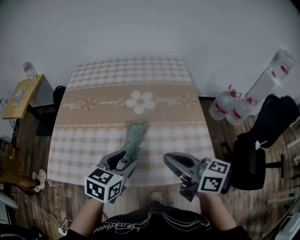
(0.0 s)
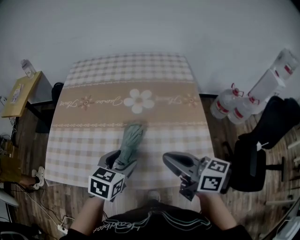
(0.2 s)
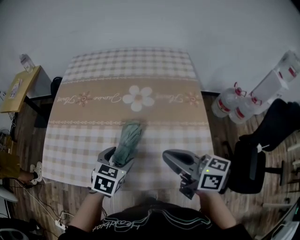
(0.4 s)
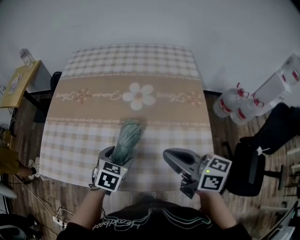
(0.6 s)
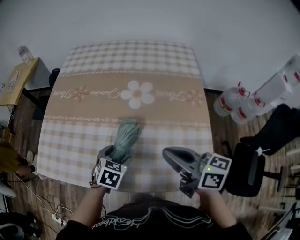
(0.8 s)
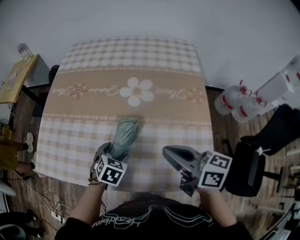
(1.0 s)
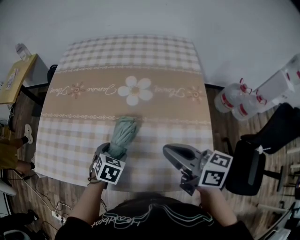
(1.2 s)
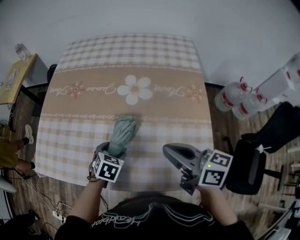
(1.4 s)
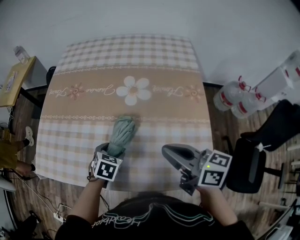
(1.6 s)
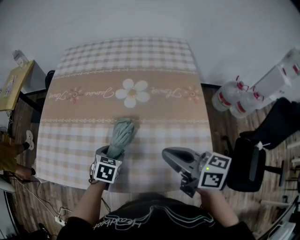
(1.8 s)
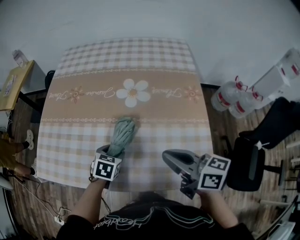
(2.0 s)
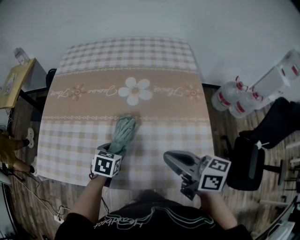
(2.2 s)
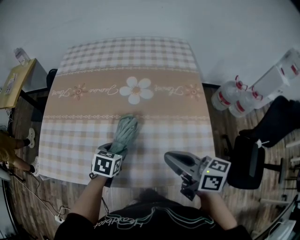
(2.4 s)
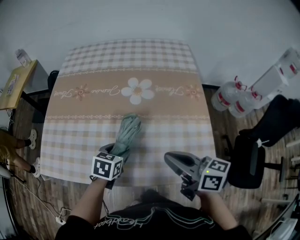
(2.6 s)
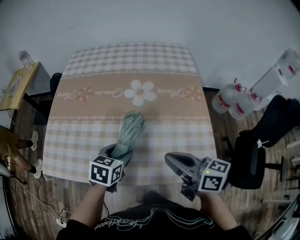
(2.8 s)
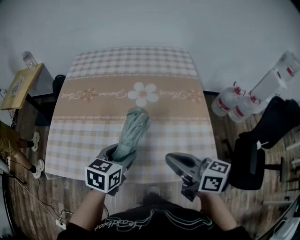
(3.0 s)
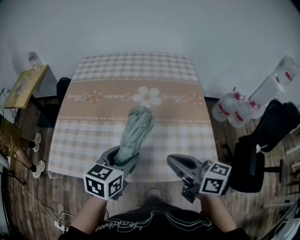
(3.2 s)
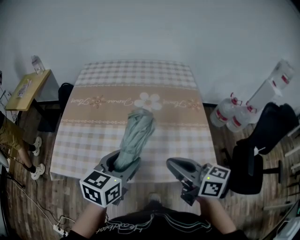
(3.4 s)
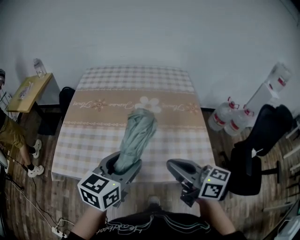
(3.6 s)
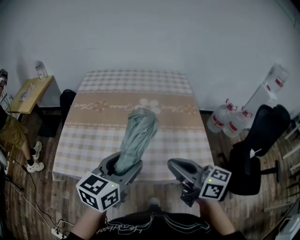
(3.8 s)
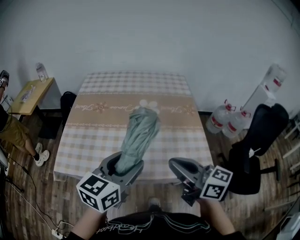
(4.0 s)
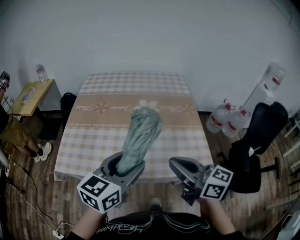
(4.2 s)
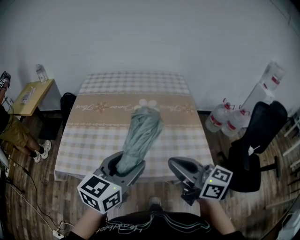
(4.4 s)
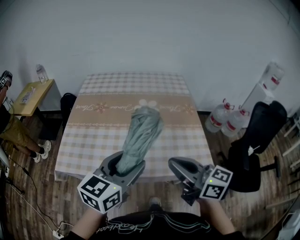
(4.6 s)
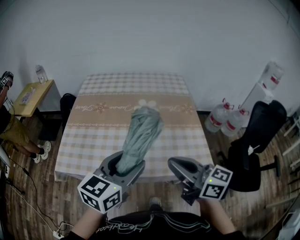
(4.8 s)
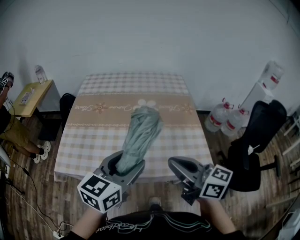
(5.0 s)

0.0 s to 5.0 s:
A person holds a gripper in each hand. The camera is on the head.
0.0 to 1.6 s: The left gripper is displaced downward and forward by approximately 20 cm, changes its angle by roughly 30 degrees, and opens, while the right gripper goes some 10 cm forward, to the right and downward.
1.6 to 3.4 s: The left gripper moves upward and backward, some 30 cm, and tips its fingers upward by about 40 degrees, while the right gripper goes roughly 15 cm backward, to the left and upward.
3.4 to 5.0 s: The left gripper moves upward and backward, roughly 10 cm. Meanwhile the right gripper moves backward and upward, some 10 cm.

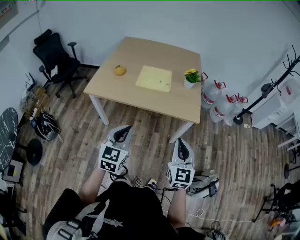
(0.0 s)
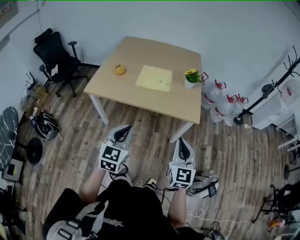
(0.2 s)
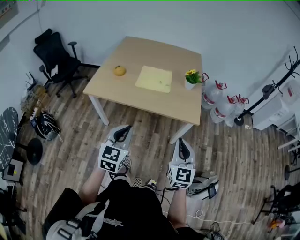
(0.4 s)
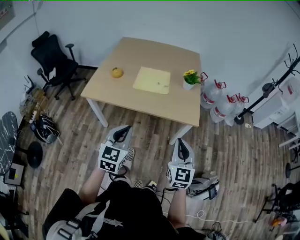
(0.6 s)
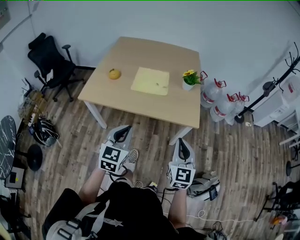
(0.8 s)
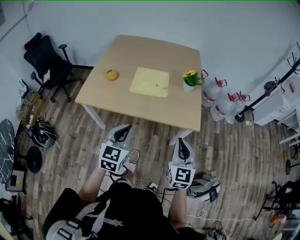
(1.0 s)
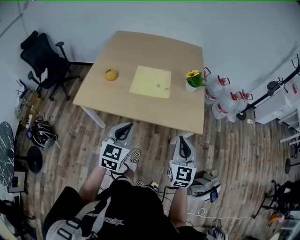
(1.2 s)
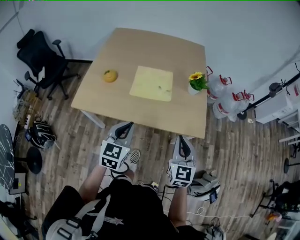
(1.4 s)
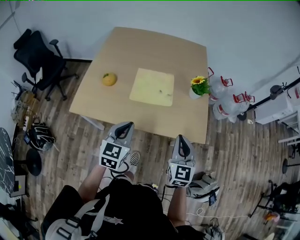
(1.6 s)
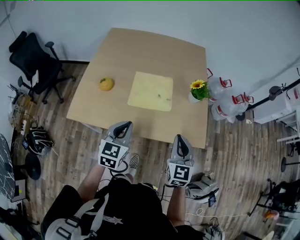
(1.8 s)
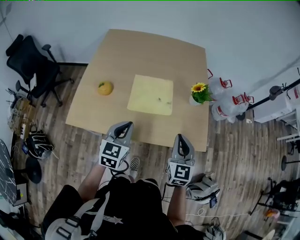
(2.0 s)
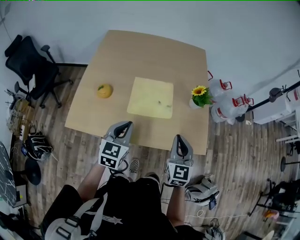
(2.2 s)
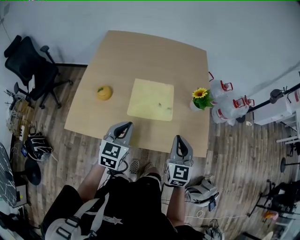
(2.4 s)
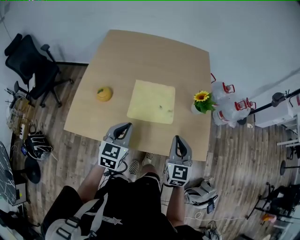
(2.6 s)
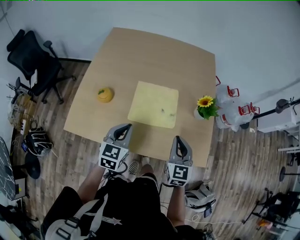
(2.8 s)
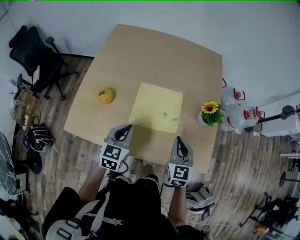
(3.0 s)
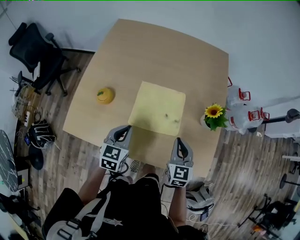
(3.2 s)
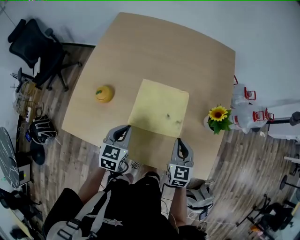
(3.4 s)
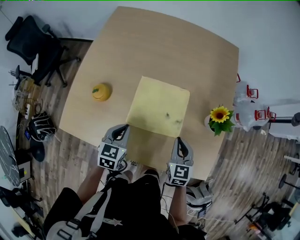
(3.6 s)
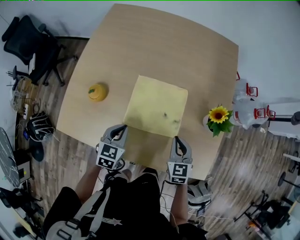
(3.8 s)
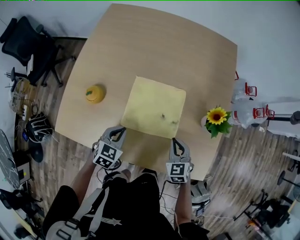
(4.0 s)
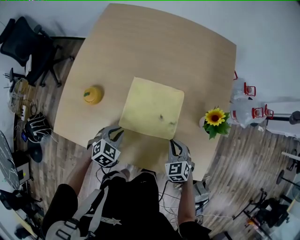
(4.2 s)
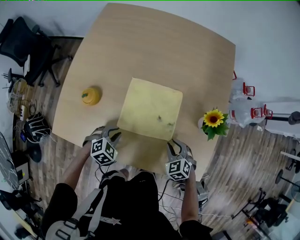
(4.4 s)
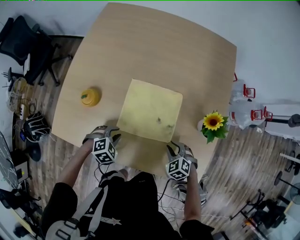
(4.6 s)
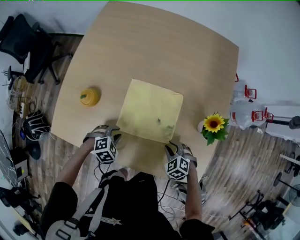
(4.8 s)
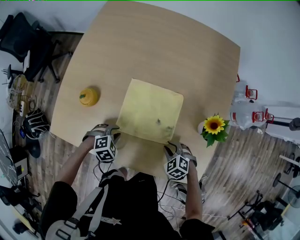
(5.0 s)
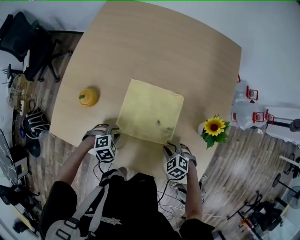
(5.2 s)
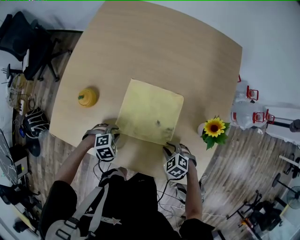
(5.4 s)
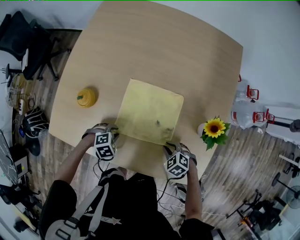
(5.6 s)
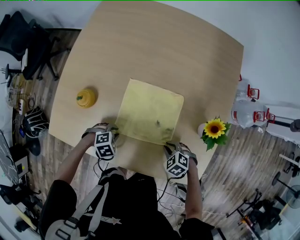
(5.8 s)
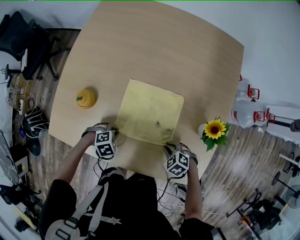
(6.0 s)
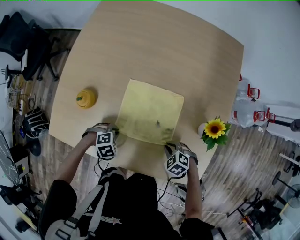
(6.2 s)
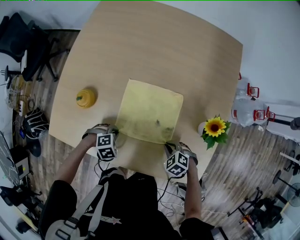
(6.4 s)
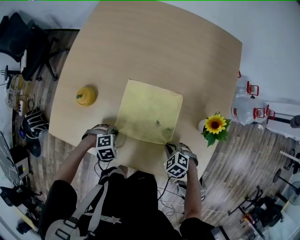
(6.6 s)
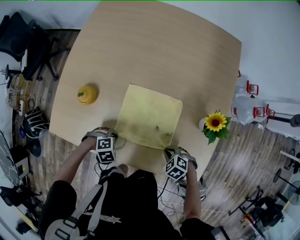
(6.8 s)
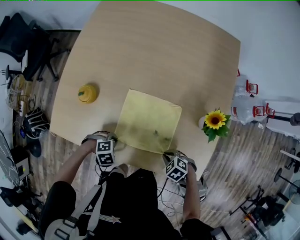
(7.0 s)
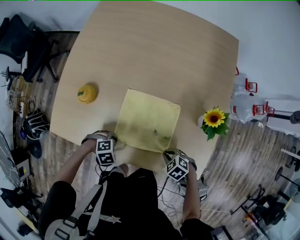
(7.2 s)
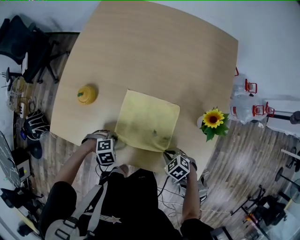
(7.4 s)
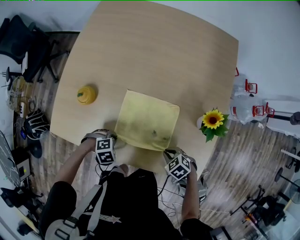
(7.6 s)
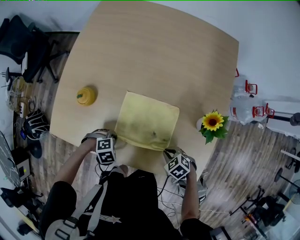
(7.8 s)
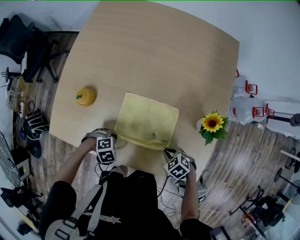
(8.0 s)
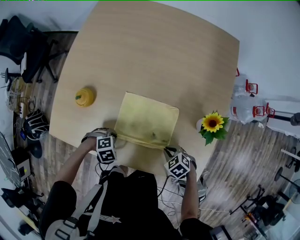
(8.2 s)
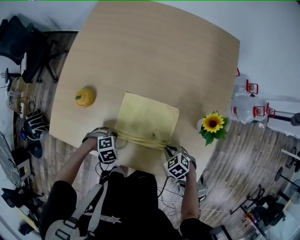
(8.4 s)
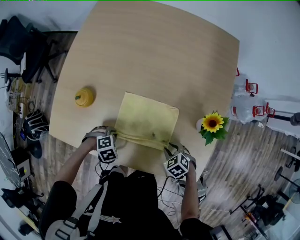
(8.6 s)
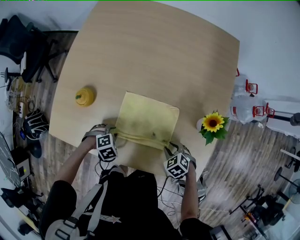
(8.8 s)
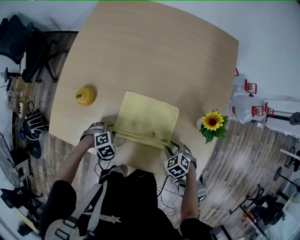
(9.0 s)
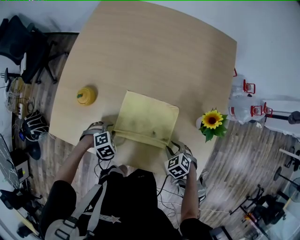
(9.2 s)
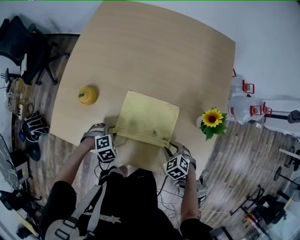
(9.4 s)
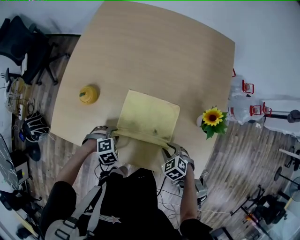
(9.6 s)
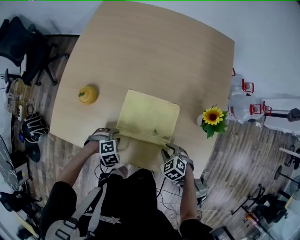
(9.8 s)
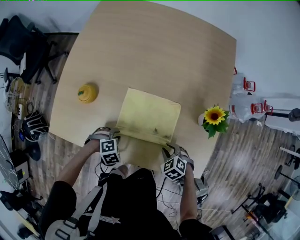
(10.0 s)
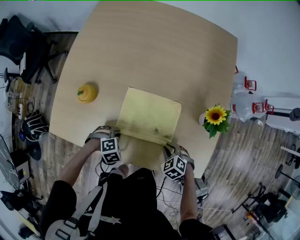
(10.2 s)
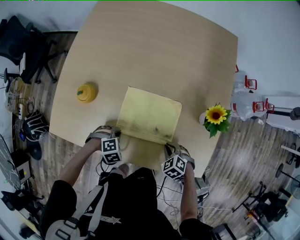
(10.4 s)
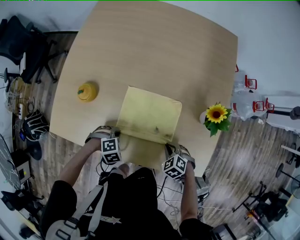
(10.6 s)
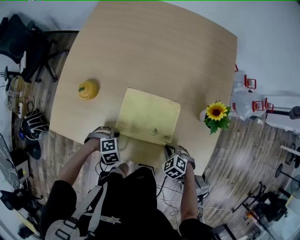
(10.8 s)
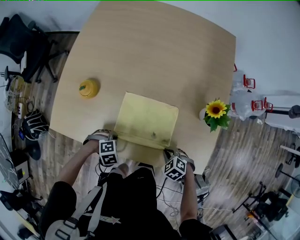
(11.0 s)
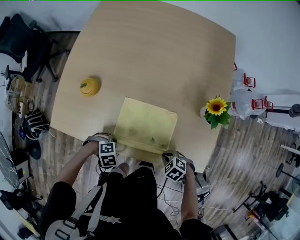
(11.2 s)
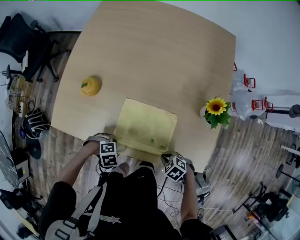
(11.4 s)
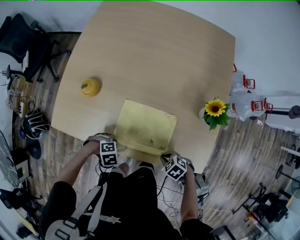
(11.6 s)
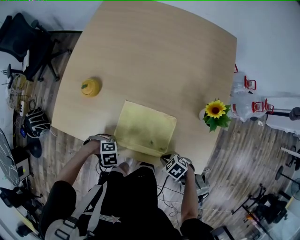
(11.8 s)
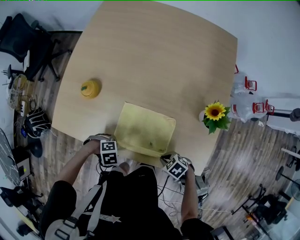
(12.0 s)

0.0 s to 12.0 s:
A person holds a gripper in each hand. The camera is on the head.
0.0 to 1.6 s: The right gripper moves about 25 cm.
1.6 to 3.0 s: The right gripper changes place by approximately 20 cm.
3.0 to 4.4 s: The right gripper heads downward, covering roughly 20 cm, angles its fingers downward, by roughly 30 degrees, and opens its fingers.
4.4 to 6.0 s: The right gripper shifts roughly 5 cm downward, and rotates some 30 degrees.
6.0 to 7.6 s: The right gripper changes place by about 5 cm.
7.6 to 9.0 s: The right gripper changes place by approximately 5 cm, and opens.
9.0 to 10.4 s: The right gripper closes up.
10.4 to 12.0 s: The right gripper shifts by approximately 10 cm, and swivels roughly 30 degrees.

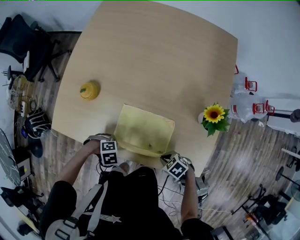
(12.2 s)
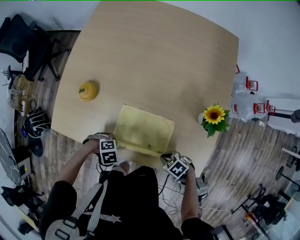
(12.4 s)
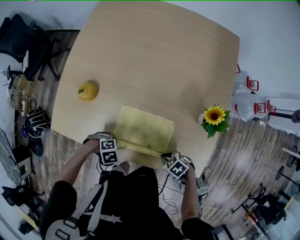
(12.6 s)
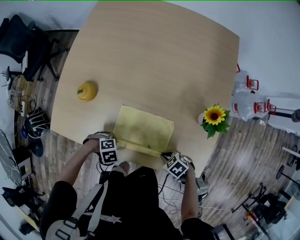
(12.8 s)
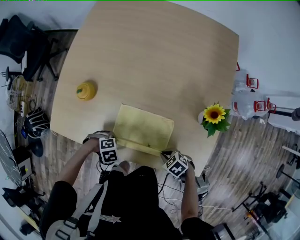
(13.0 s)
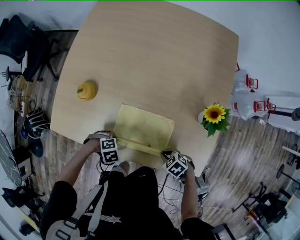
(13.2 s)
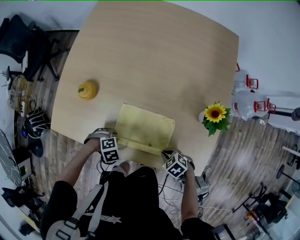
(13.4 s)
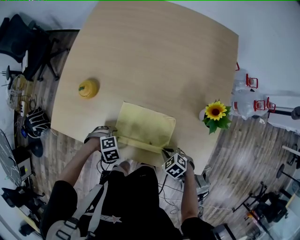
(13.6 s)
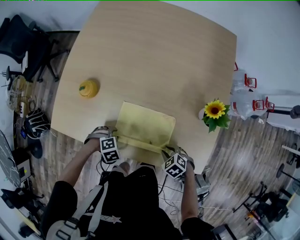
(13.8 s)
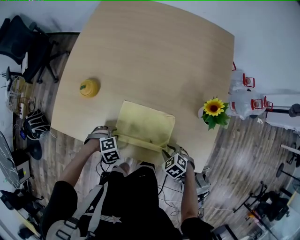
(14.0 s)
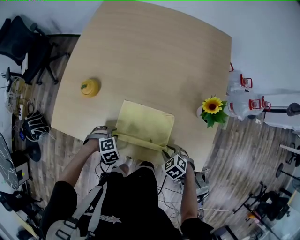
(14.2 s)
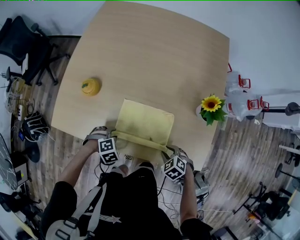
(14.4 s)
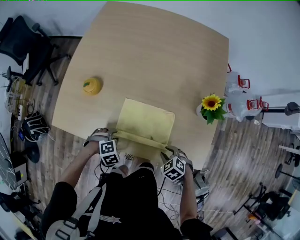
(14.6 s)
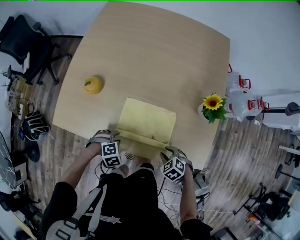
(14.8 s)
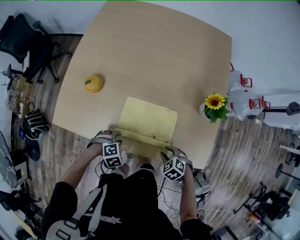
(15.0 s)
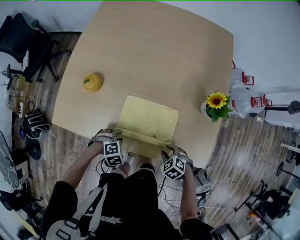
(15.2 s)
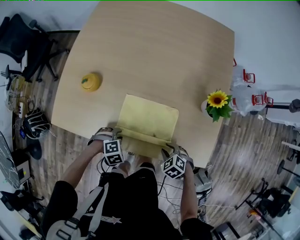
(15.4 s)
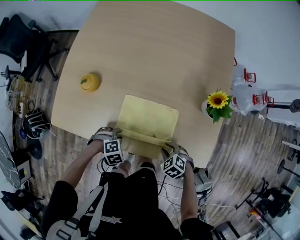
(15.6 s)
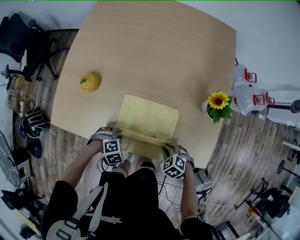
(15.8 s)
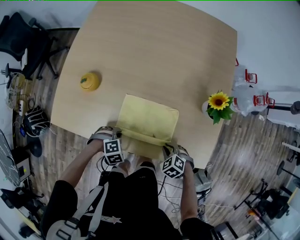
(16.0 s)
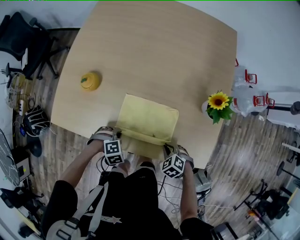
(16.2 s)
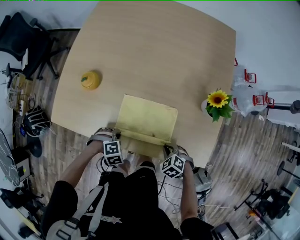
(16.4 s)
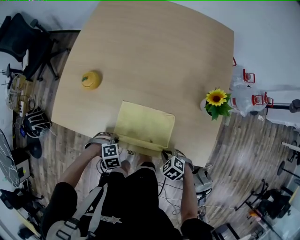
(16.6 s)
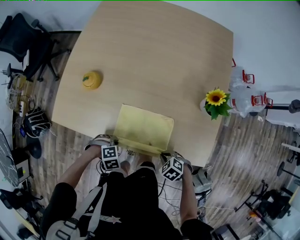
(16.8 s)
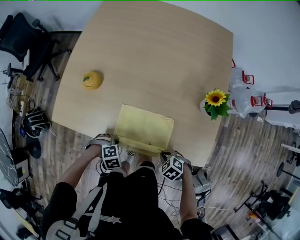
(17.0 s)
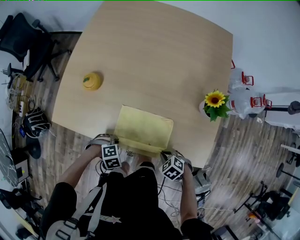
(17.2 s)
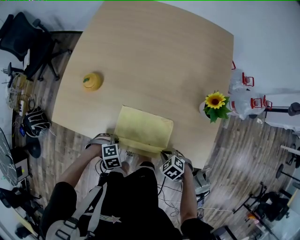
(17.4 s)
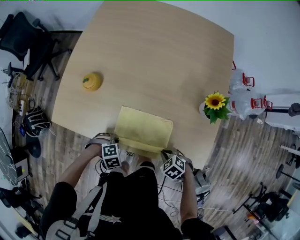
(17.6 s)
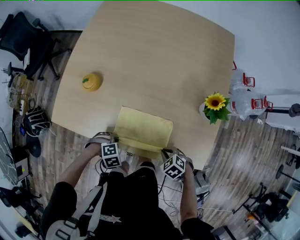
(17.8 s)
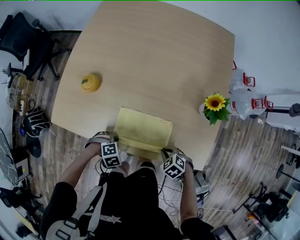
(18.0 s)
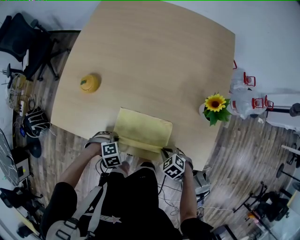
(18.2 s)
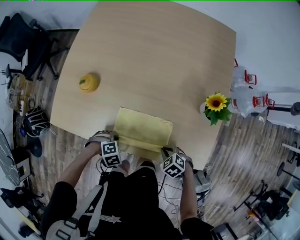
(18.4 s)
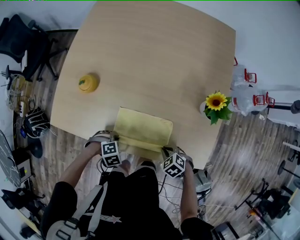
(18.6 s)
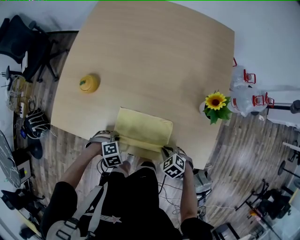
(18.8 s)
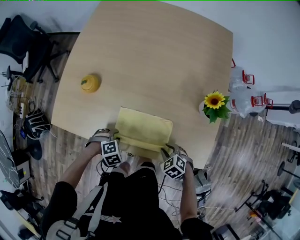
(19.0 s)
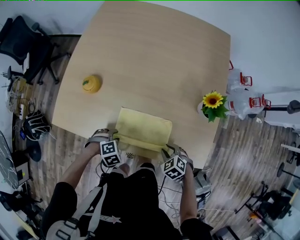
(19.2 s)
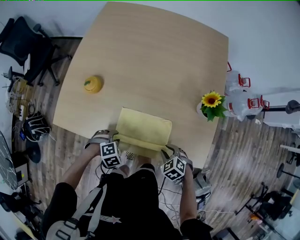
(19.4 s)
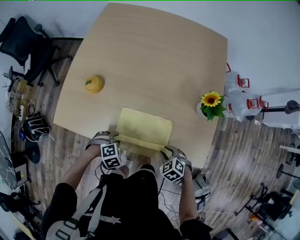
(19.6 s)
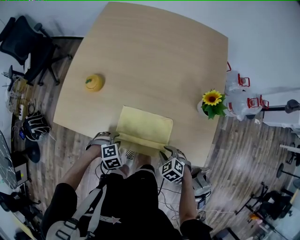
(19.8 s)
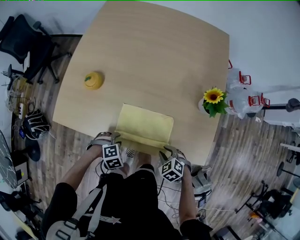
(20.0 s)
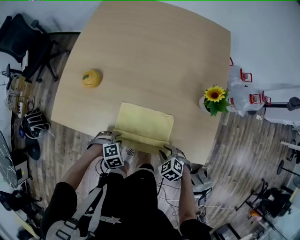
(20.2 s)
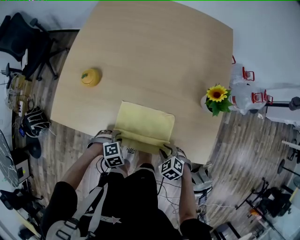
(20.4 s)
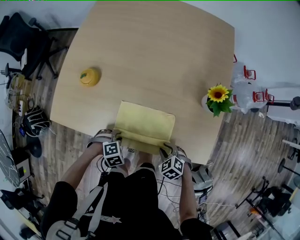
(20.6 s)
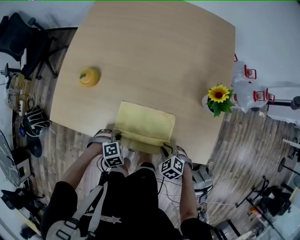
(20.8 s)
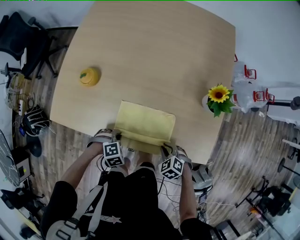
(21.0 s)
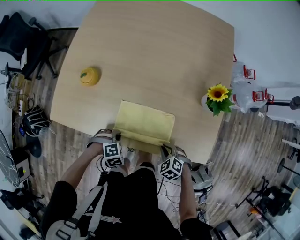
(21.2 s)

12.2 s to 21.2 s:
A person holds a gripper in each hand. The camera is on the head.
12.2 to 13.8 s: The right gripper opens its fingers.
15.2 to 16.6 s: The right gripper closes up.
18.2 to 19.8 s: The right gripper opens its fingers.
